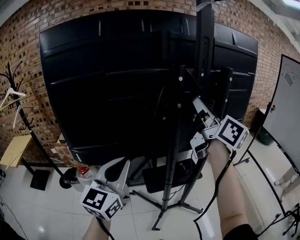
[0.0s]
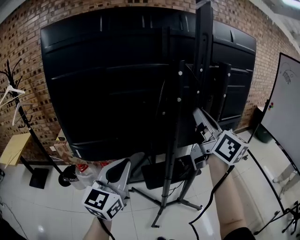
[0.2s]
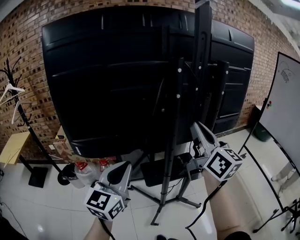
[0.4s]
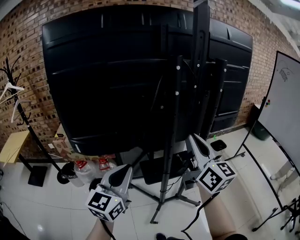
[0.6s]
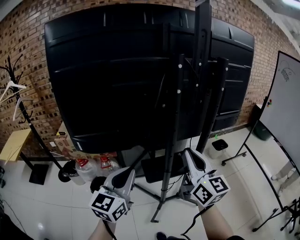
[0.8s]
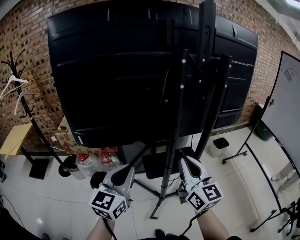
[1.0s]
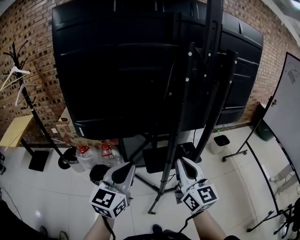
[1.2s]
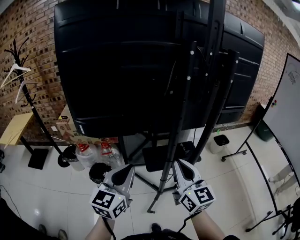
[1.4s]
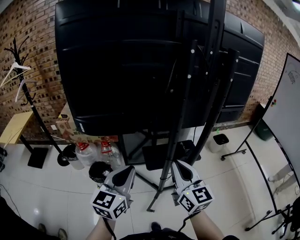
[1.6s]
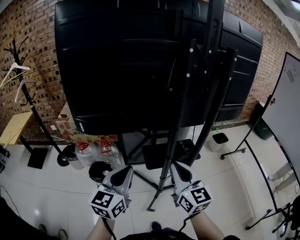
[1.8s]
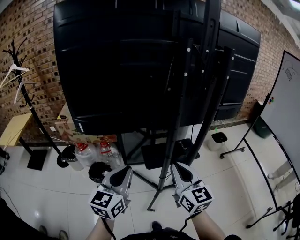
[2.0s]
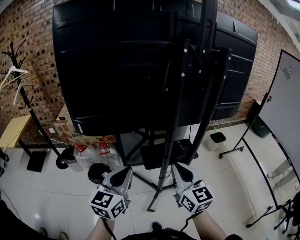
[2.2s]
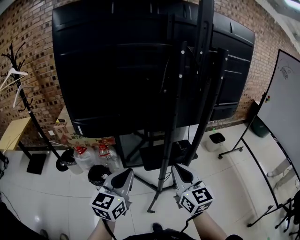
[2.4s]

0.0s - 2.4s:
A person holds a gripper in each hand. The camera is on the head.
0.0s - 1.2s: The right gripper is displaced downward and backward by some 30 cm, and changes its angle by approximately 30 degrees, while the left gripper goes some 10 cm downward and backward.
1.2s - 2.4s: The right gripper moves some 5 cm.

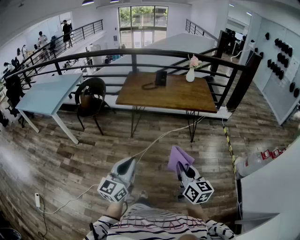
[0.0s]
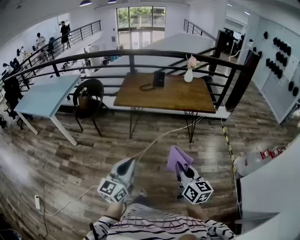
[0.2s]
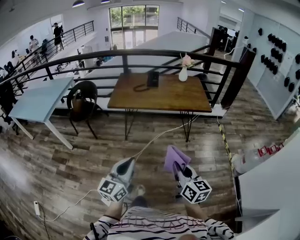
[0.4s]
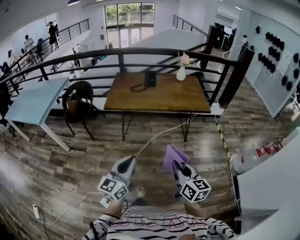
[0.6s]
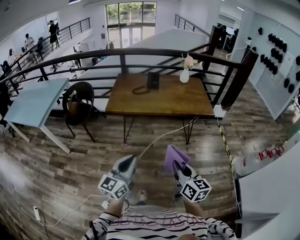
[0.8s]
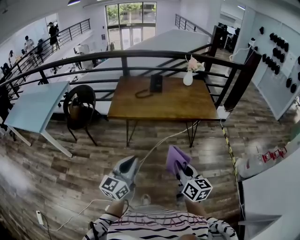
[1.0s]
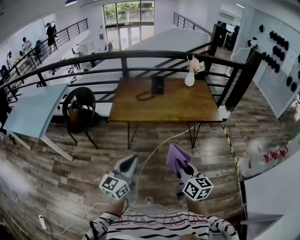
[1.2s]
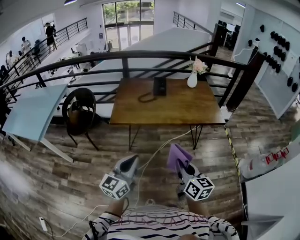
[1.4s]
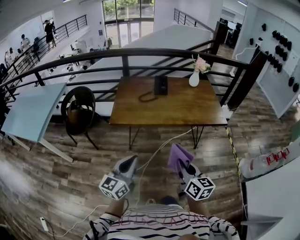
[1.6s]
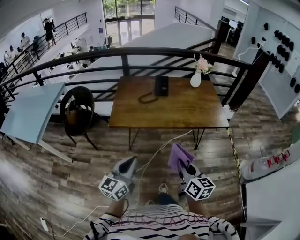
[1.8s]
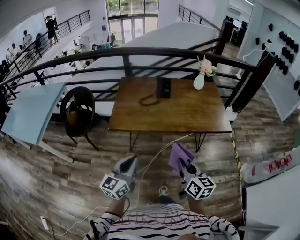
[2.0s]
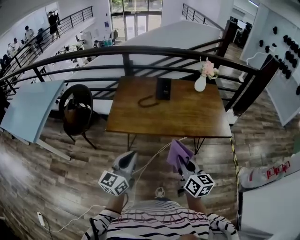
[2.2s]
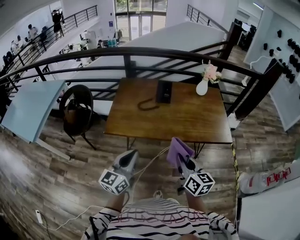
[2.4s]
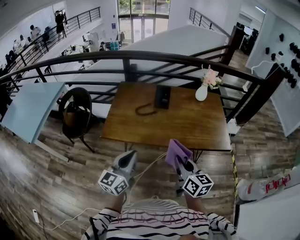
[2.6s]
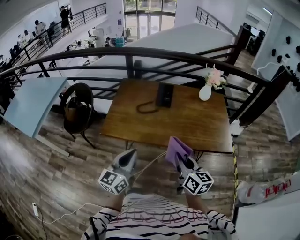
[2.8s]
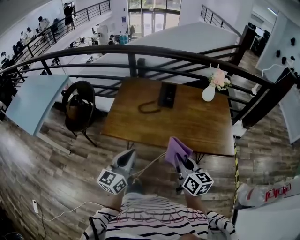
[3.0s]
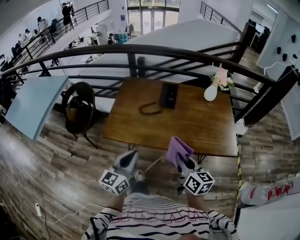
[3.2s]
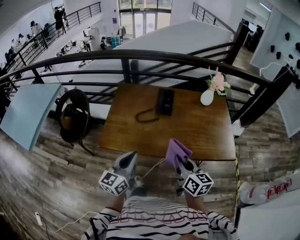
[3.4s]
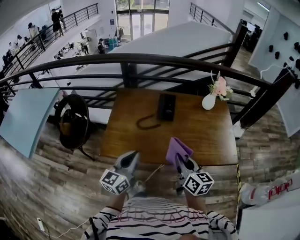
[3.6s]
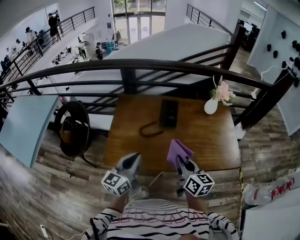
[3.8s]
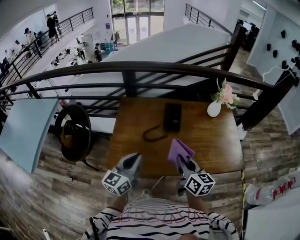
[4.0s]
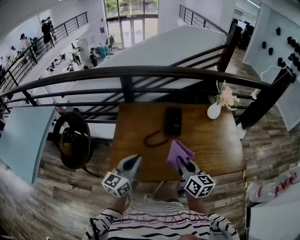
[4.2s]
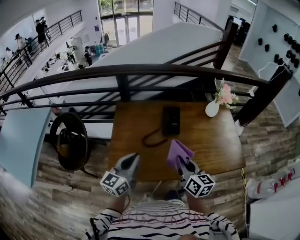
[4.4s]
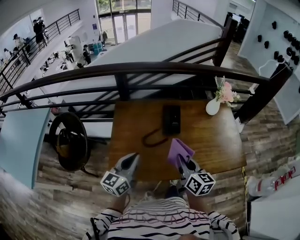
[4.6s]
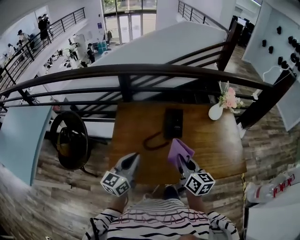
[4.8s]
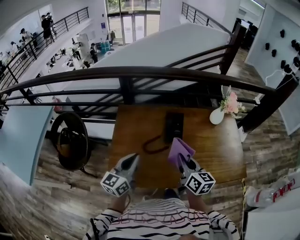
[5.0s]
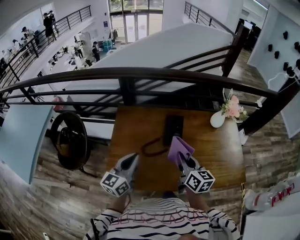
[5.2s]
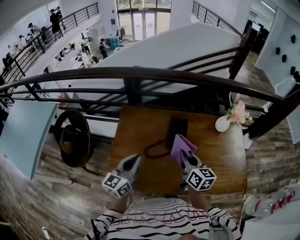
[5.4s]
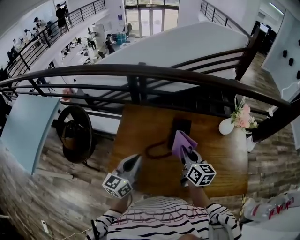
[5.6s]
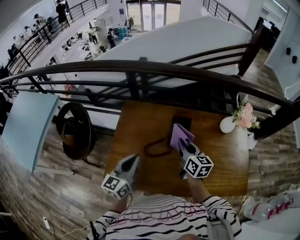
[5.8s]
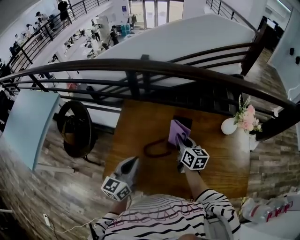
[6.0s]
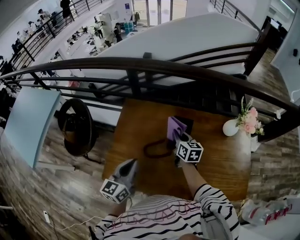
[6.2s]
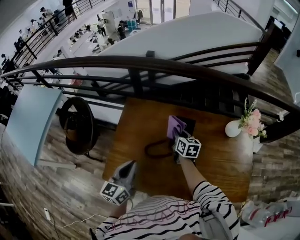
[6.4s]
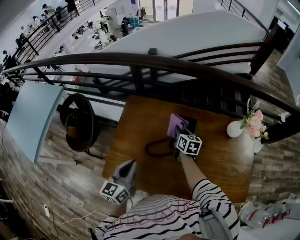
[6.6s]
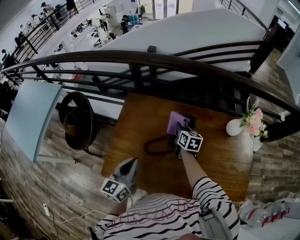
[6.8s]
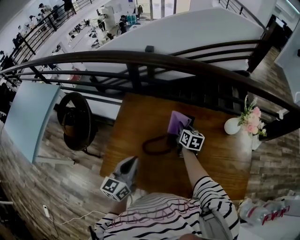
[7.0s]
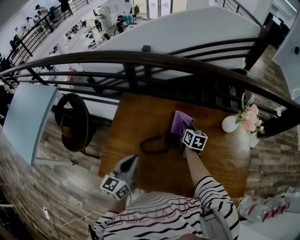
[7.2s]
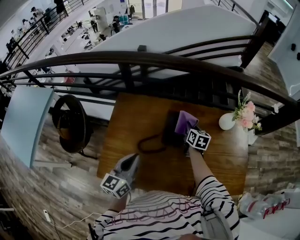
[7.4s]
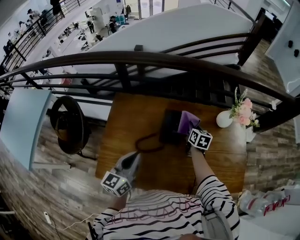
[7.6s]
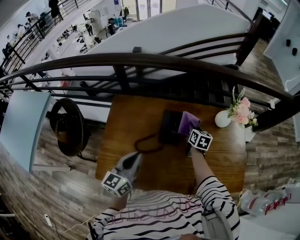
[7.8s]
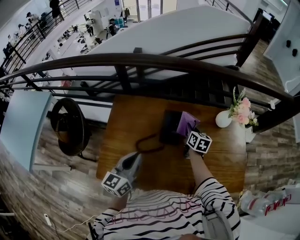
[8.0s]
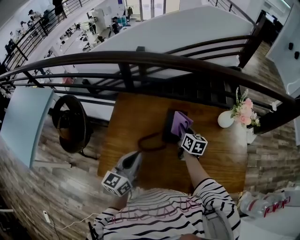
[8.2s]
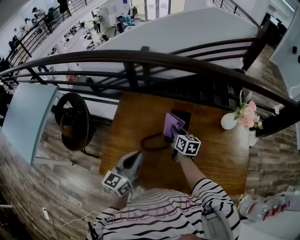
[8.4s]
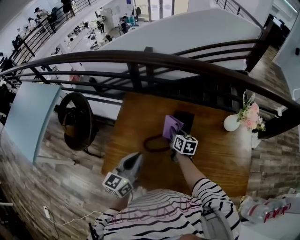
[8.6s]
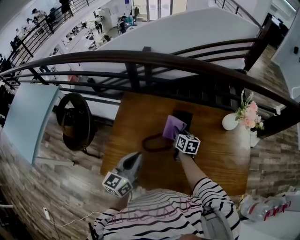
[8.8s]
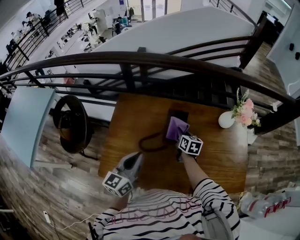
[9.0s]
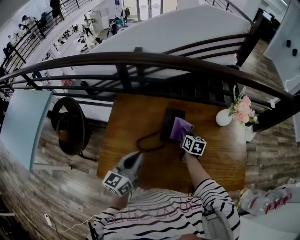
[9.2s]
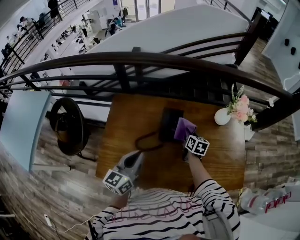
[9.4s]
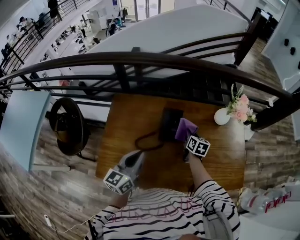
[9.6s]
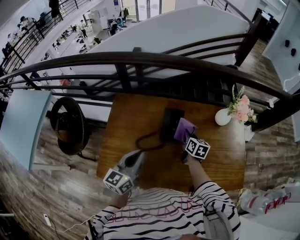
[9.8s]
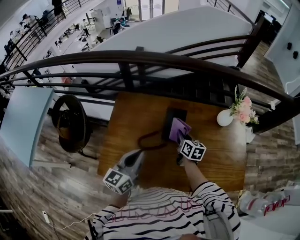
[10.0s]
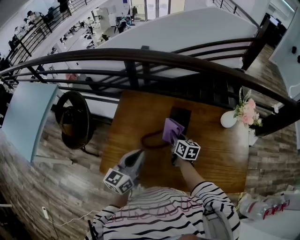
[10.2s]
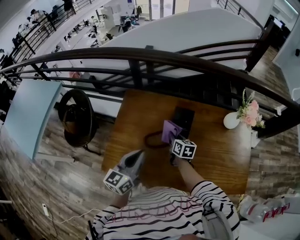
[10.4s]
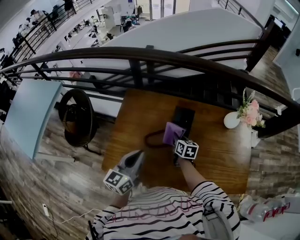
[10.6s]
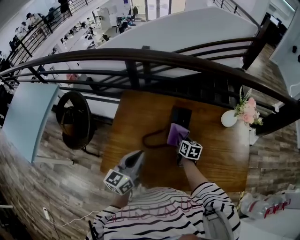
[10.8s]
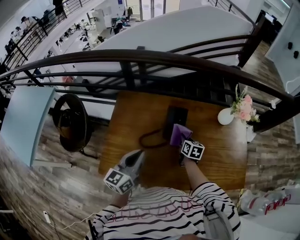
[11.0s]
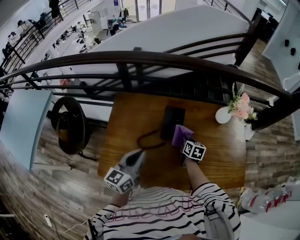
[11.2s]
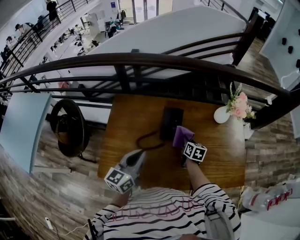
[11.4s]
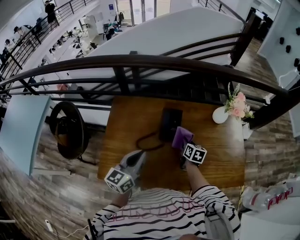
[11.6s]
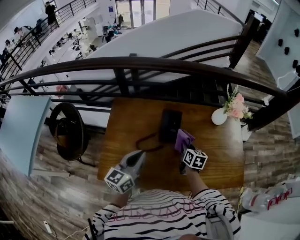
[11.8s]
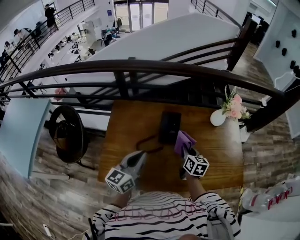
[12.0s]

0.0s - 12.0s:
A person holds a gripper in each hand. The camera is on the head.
0.0s - 1.6s: The right gripper heads forward and to the left, covering roughly 35 cm; the left gripper moves forward, about 35 cm.
1.6s - 3.0s: The grippers both shift forward by roughly 30 cm.
3.0s - 4.4s: Both grippers move forward and to the left, roughly 30 cm.
4.4s - 6.0s: The left gripper goes approximately 15 cm forward. The right gripper moves forward, some 30 cm.
6.0s - 7.6s: The right gripper moves to the right, downward and forward, approximately 20 cm, and rotates approximately 20 degrees, while the left gripper shifts by approximately 5 cm.
7.6s - 9.0s: The right gripper moves to the left, roughly 10 cm.
9.0s - 10.4s: The right gripper travels to the left and backward by roughly 10 cm.
10.4s - 12.0s: The right gripper heads to the right, backward and upward, covering approximately 15 cm.

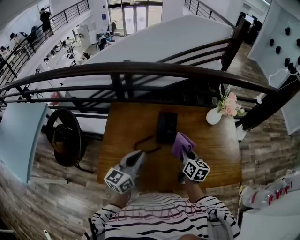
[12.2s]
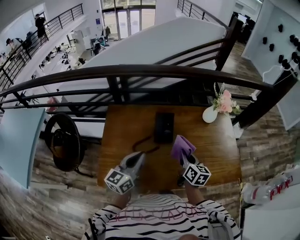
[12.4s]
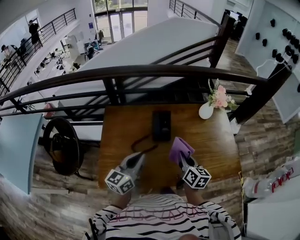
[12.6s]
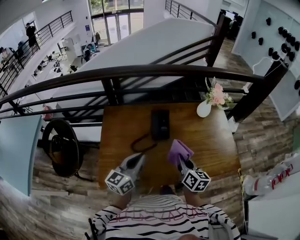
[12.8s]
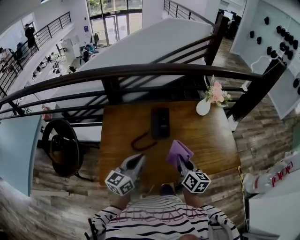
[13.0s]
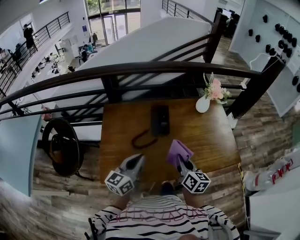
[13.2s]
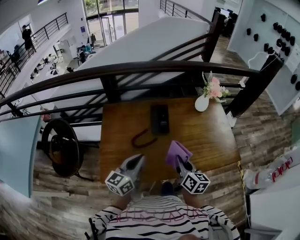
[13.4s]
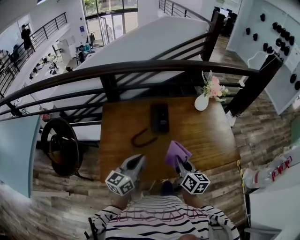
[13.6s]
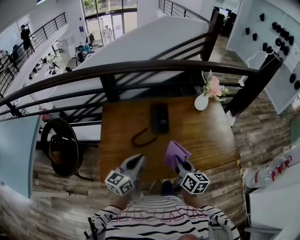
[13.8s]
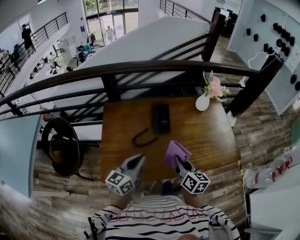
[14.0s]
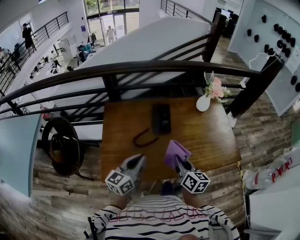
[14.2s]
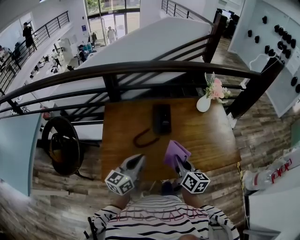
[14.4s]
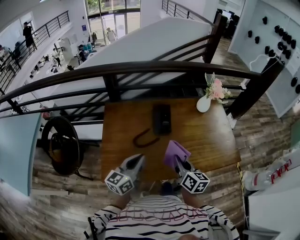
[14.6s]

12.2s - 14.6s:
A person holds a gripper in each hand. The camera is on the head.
12.2s - 13.4s: The left gripper is displaced backward by roughly 10 cm, while the right gripper heads backward, covering some 15 cm.
13.4s - 14.6s: The grippers move only a little.

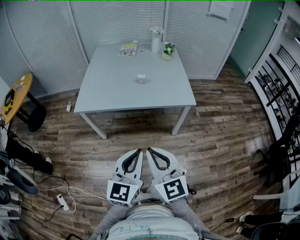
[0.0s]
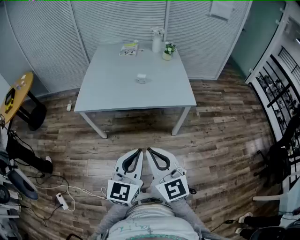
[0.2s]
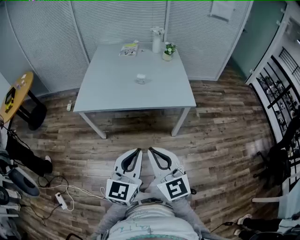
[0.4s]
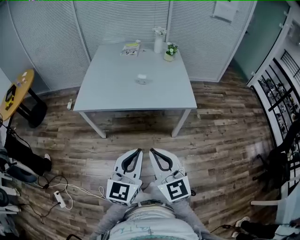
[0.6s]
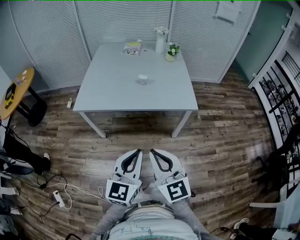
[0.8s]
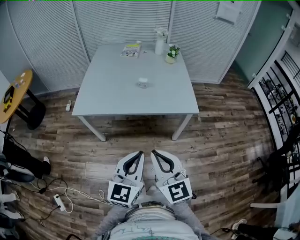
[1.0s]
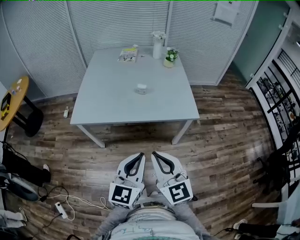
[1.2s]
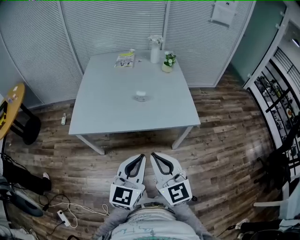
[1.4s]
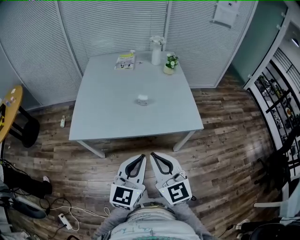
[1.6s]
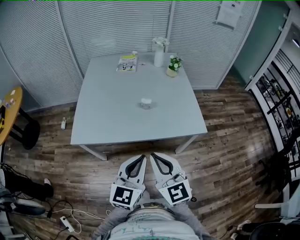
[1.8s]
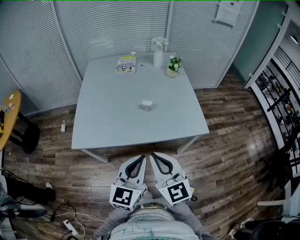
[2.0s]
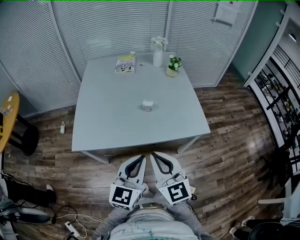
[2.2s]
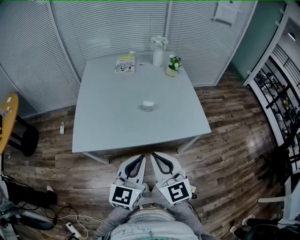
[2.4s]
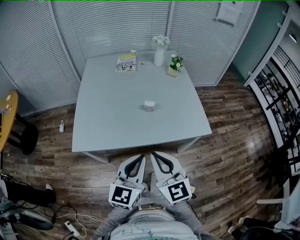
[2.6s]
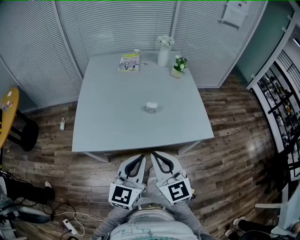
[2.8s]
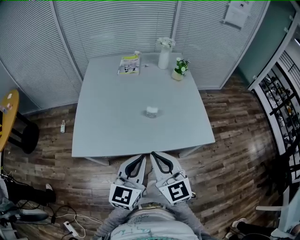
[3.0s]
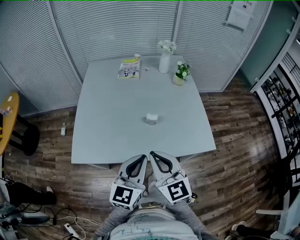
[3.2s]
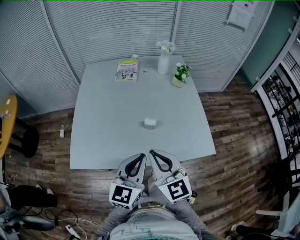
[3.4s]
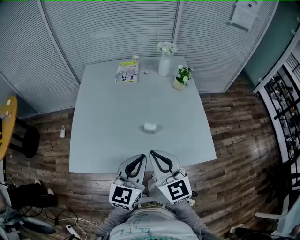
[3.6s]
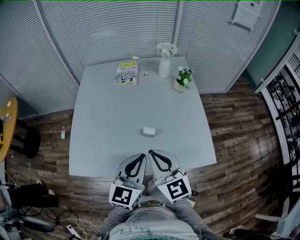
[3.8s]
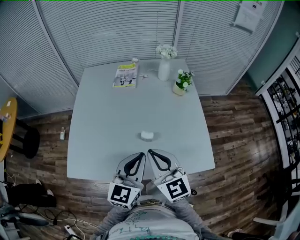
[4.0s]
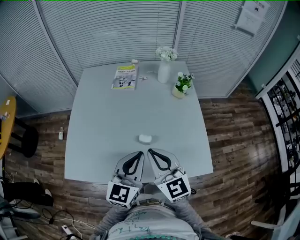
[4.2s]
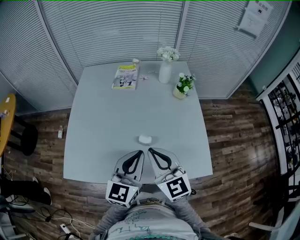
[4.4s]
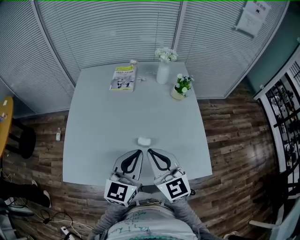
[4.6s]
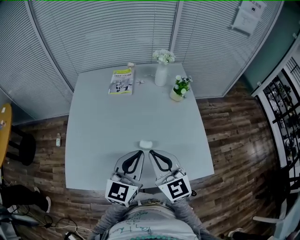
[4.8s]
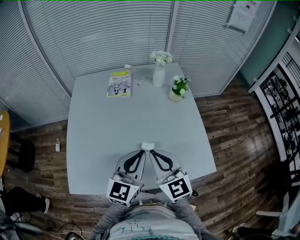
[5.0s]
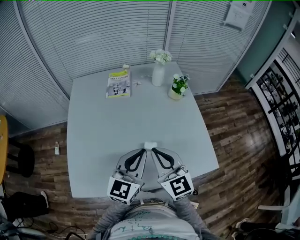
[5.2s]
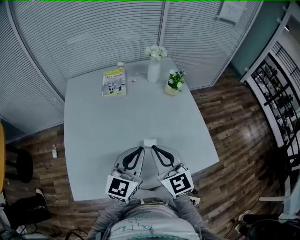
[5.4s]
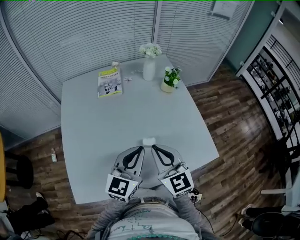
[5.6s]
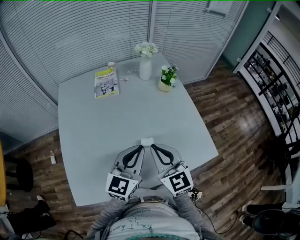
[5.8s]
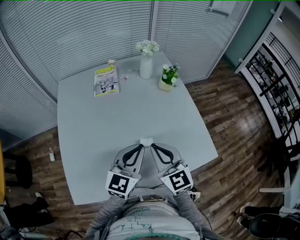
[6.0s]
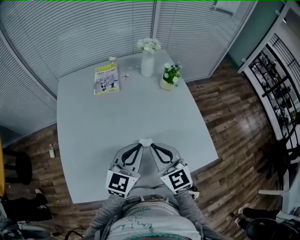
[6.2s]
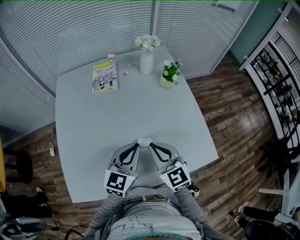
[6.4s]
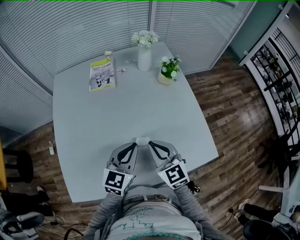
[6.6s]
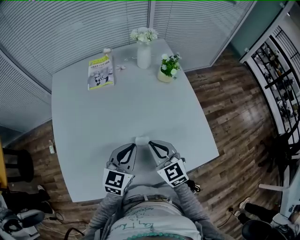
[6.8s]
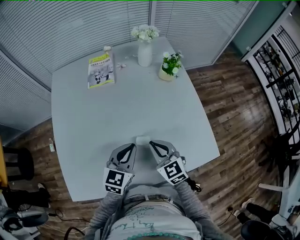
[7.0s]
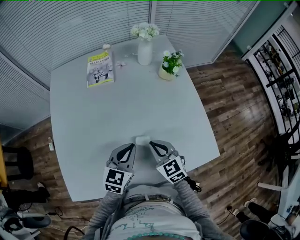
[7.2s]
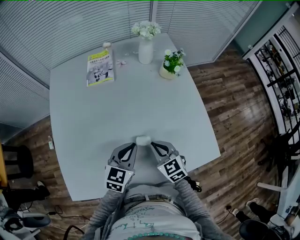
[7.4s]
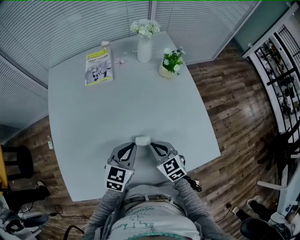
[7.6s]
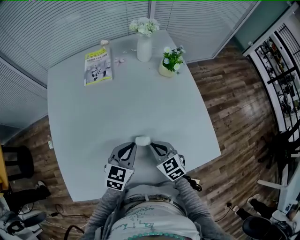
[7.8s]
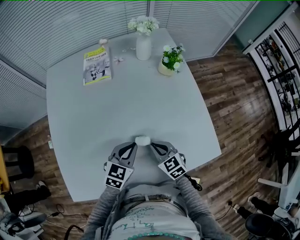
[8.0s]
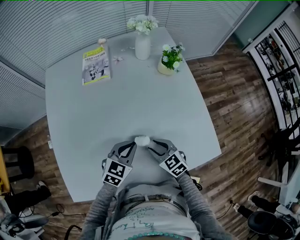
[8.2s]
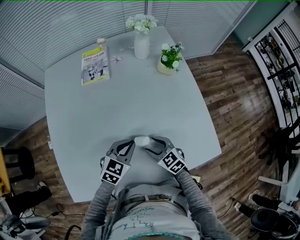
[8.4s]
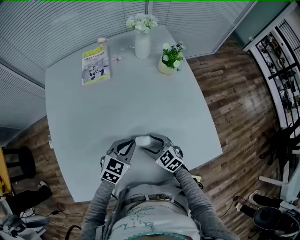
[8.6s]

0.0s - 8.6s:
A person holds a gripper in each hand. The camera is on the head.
0.0s - 1.4s: Both grippers travel together forward, about 20 cm.
1.4s - 2.8s: Both grippers travel together forward and to the left, about 20 cm.
2.8s - 4.4s: The grippers both shift forward by approximately 25 cm.
4.4s - 5.8s: The left gripper is displaced forward by about 5 cm, and rotates some 20 degrees. The right gripper ends up approximately 5 cm from where it was.
5.8s - 7.2s: The left gripper moves downward and forward, about 15 cm; the right gripper goes about 20 cm downward, and turns by about 20 degrees.
7.2s - 8.6s: The two grippers go about 10 cm downward. The right gripper opens.
